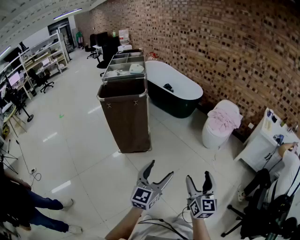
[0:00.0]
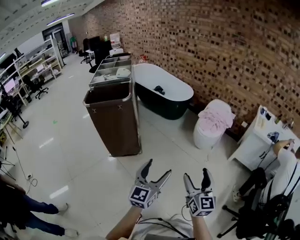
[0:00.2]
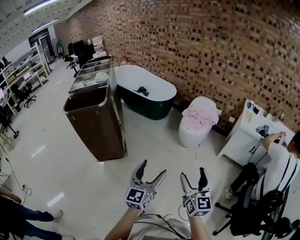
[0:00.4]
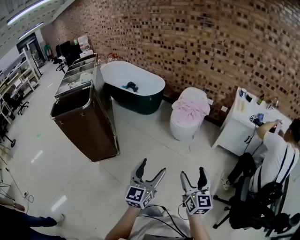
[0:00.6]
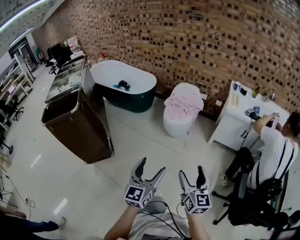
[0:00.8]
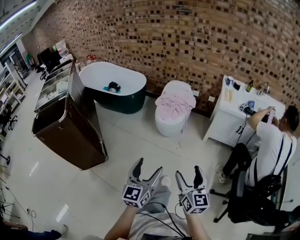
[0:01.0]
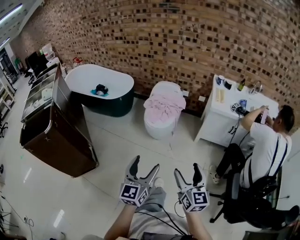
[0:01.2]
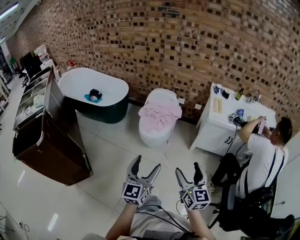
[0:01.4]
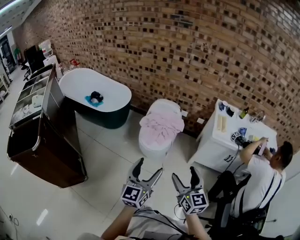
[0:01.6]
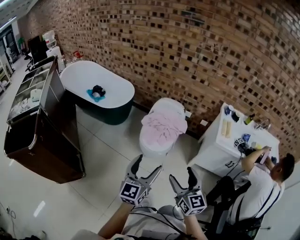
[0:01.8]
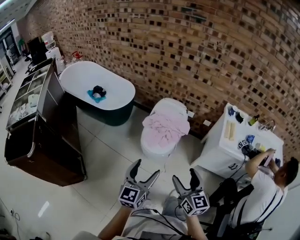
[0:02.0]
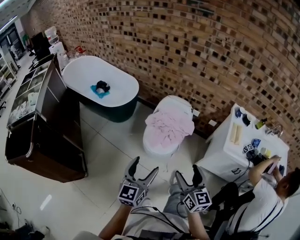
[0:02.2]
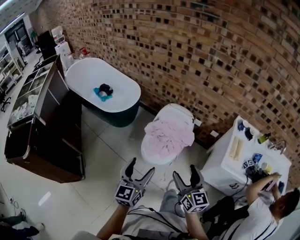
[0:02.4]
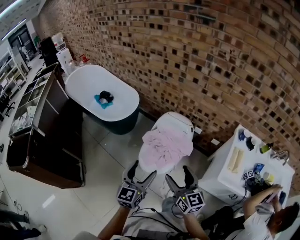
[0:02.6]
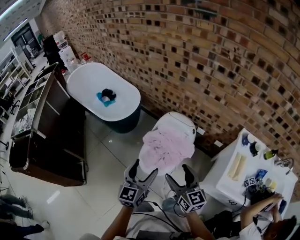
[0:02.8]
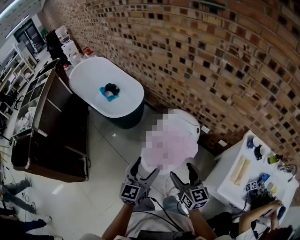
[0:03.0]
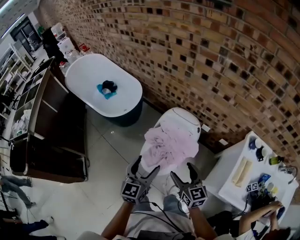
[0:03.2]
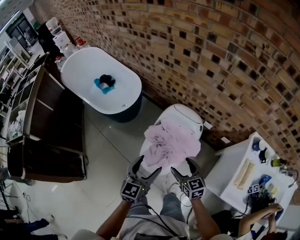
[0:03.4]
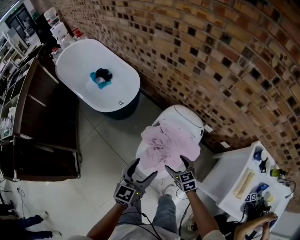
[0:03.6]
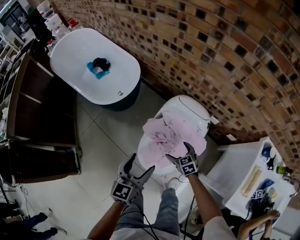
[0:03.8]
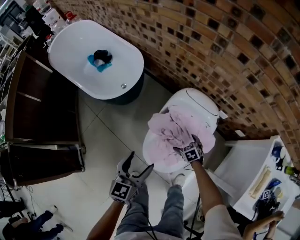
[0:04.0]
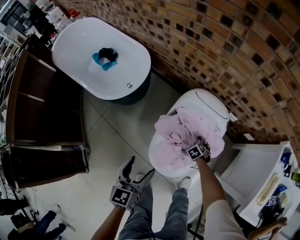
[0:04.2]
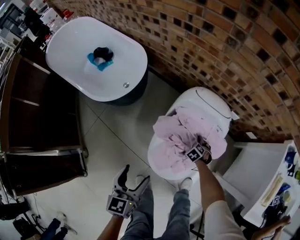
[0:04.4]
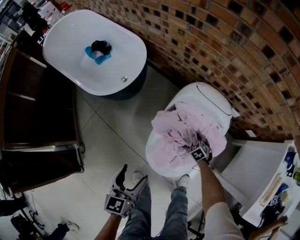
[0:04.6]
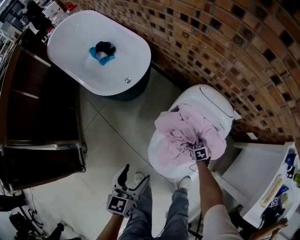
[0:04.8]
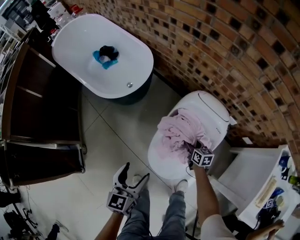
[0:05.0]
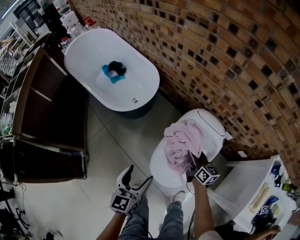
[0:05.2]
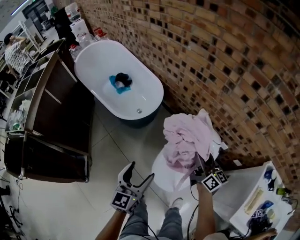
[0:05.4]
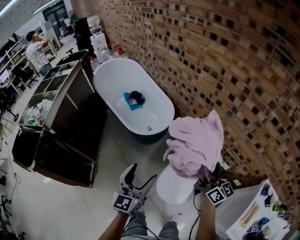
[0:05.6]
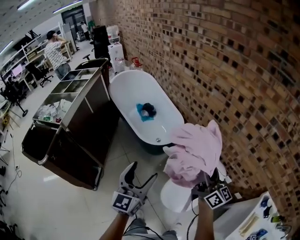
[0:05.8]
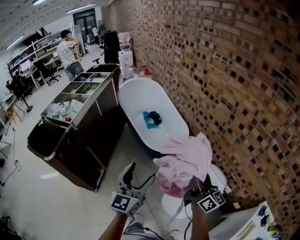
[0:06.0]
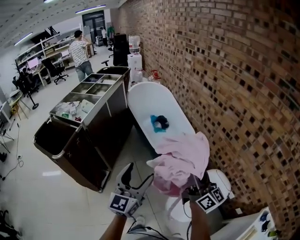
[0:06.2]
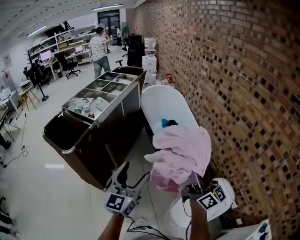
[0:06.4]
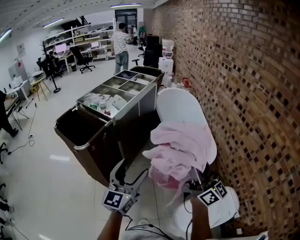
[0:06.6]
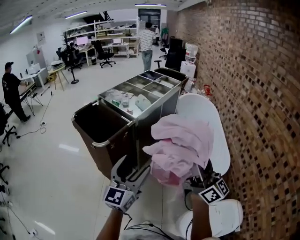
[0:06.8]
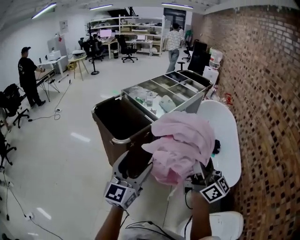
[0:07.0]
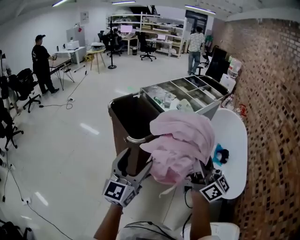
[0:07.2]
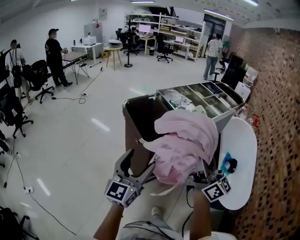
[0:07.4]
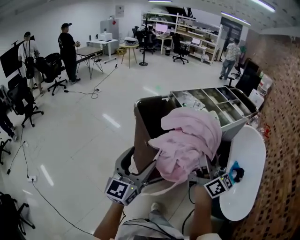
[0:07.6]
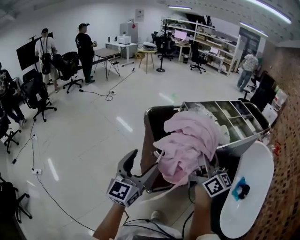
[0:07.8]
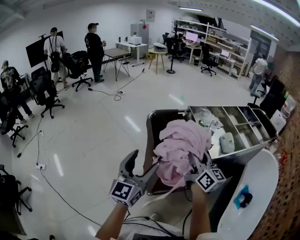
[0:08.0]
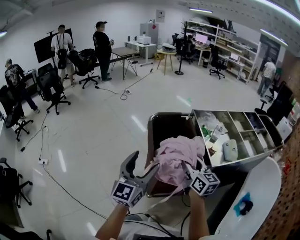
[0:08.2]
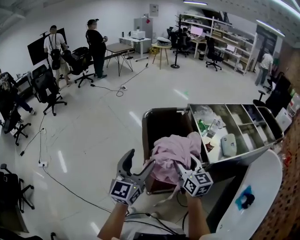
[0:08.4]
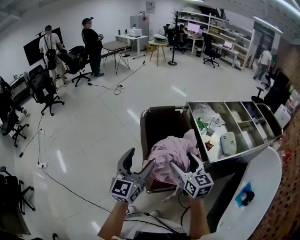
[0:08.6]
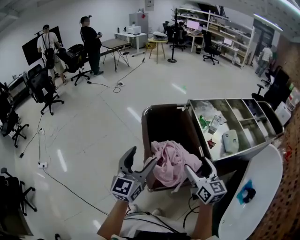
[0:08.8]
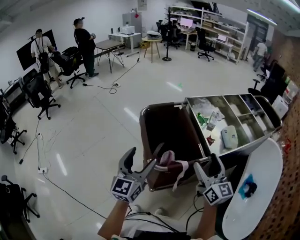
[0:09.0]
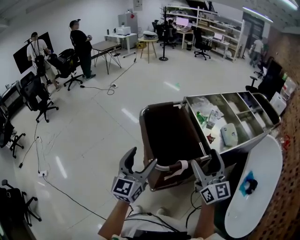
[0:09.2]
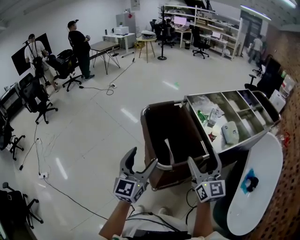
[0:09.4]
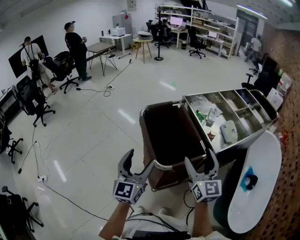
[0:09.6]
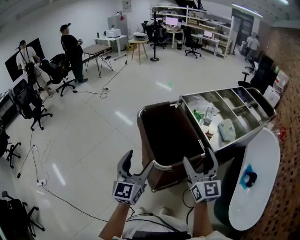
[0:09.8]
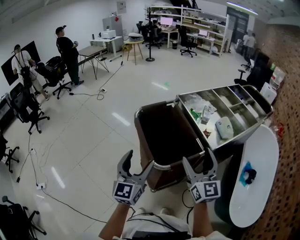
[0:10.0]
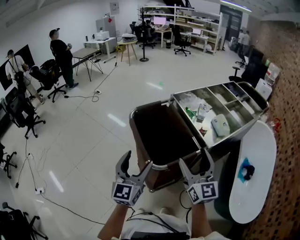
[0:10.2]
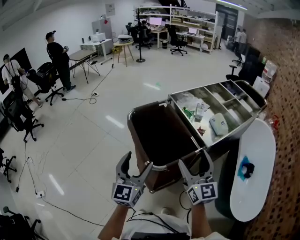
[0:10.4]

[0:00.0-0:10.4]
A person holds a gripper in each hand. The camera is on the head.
0:00.0 to 0:01.4: Both grippers are carried forward and to the right, approximately 50 cm.
0:01.4 to 0:03.0: The two grippers travel together, forward, some 50 cm. The right gripper turns by about 30 degrees.
0:03.0 to 0:04.4: The left gripper heads downward, covering roughly 25 cm; the right gripper moves downward, about 60 cm, angles its fingers downward, by approximately 70 degrees, and opens up.
0:04.4 to 0:06.0: The left gripper travels upward by some 40 cm, and tips its fingers upward by some 30 degrees. The right gripper shifts approximately 80 cm upward, angles its fingers upward, by roughly 100 degrees, and closes.
0:06.0 to 0:07.4: Both grippers are carried about 70 cm. The left gripper swivels about 50 degrees; the right gripper turns by roughly 50 degrees.
0:07.4 to 0:09.0: The left gripper moves forward, about 20 cm, and changes its angle by some 20 degrees. The right gripper travels forward and downward by some 25 cm, swivels roughly 30 degrees, and opens.
0:09.0 to 0:10.4: The right gripper shifts about 5 cm to the left.

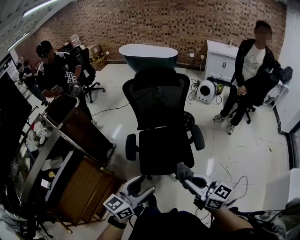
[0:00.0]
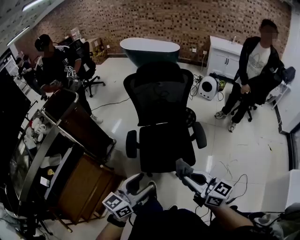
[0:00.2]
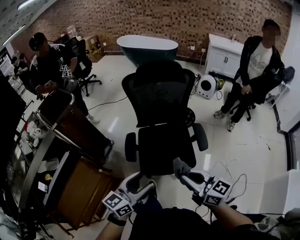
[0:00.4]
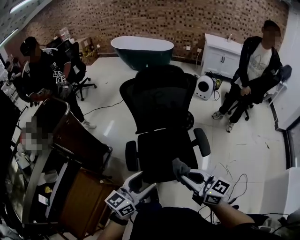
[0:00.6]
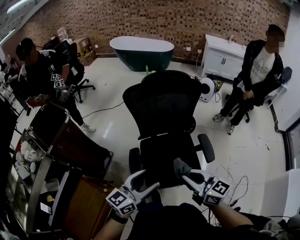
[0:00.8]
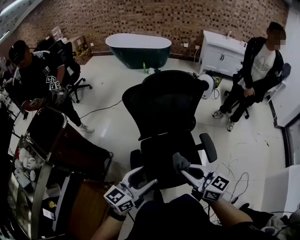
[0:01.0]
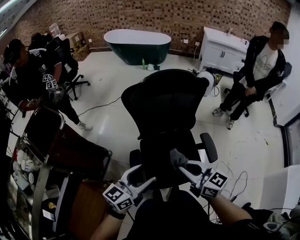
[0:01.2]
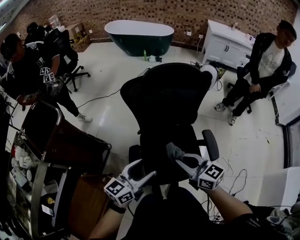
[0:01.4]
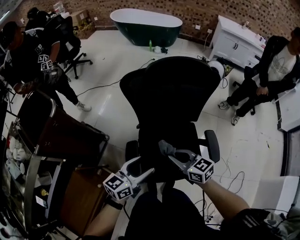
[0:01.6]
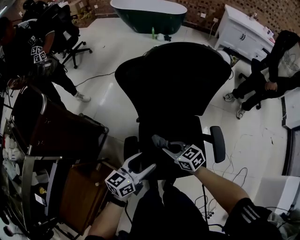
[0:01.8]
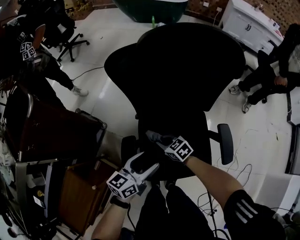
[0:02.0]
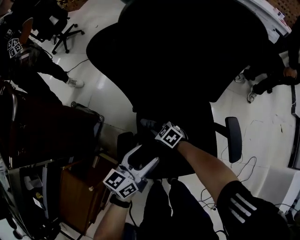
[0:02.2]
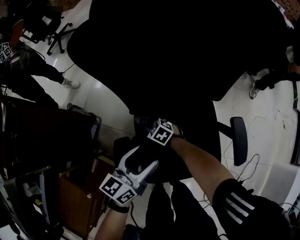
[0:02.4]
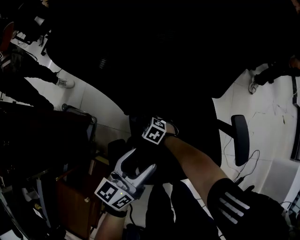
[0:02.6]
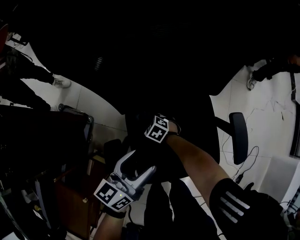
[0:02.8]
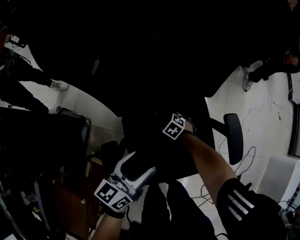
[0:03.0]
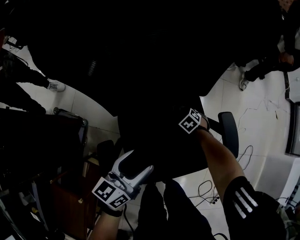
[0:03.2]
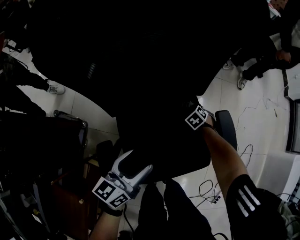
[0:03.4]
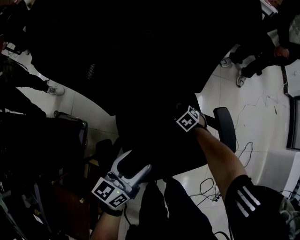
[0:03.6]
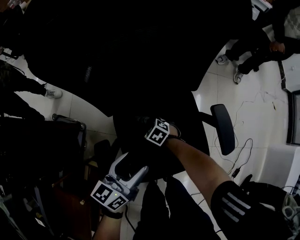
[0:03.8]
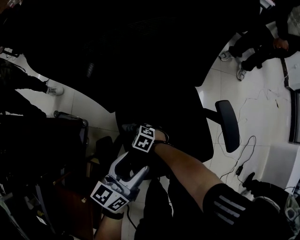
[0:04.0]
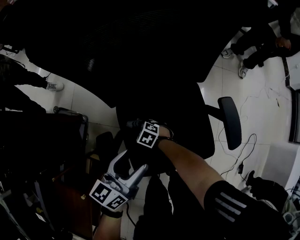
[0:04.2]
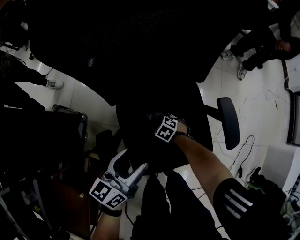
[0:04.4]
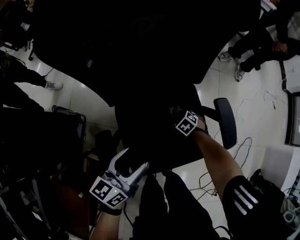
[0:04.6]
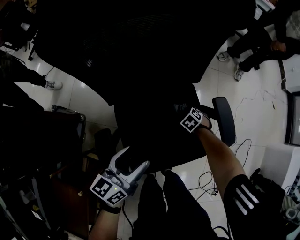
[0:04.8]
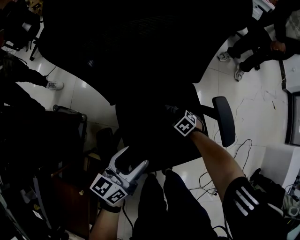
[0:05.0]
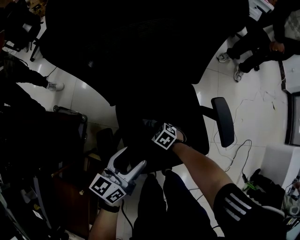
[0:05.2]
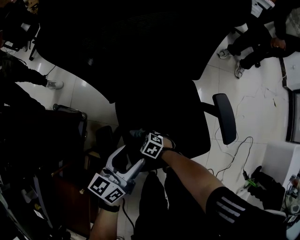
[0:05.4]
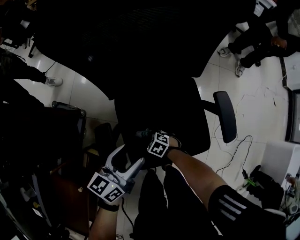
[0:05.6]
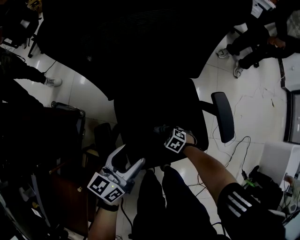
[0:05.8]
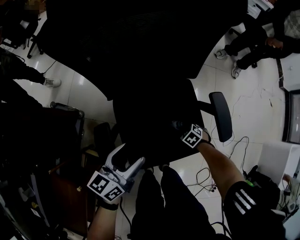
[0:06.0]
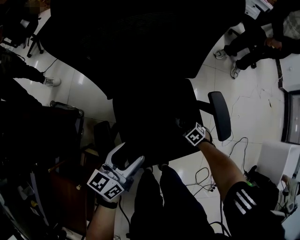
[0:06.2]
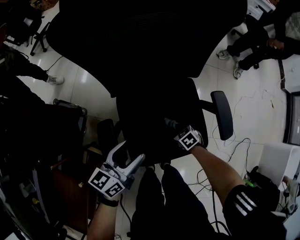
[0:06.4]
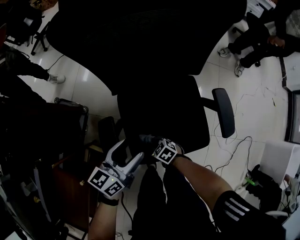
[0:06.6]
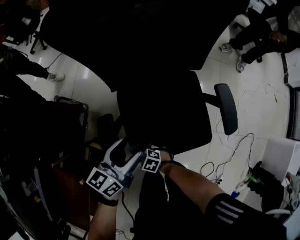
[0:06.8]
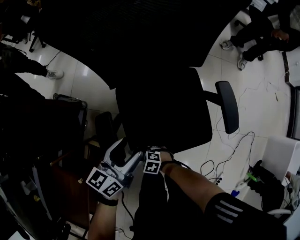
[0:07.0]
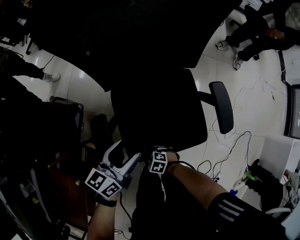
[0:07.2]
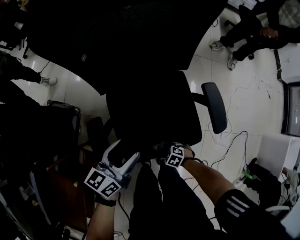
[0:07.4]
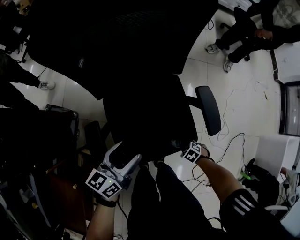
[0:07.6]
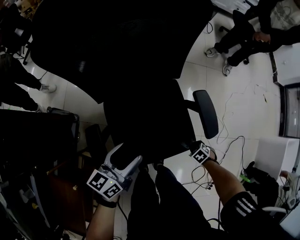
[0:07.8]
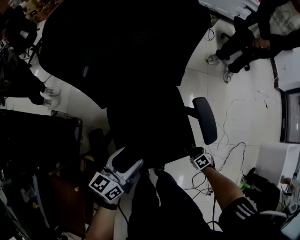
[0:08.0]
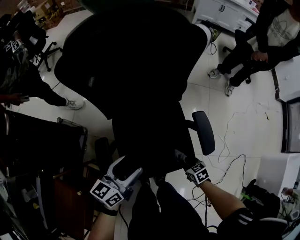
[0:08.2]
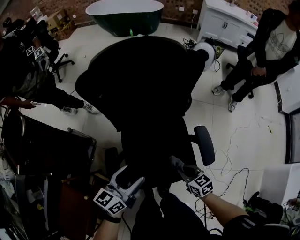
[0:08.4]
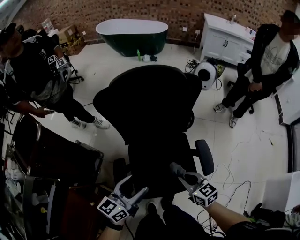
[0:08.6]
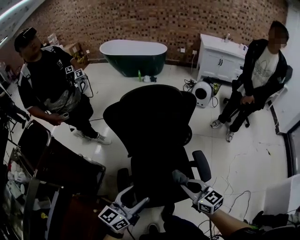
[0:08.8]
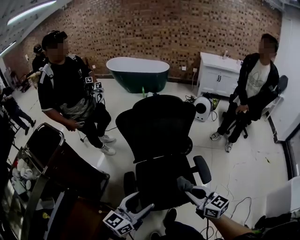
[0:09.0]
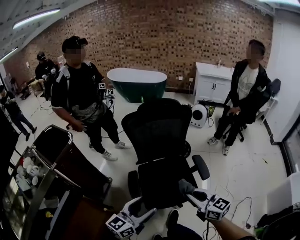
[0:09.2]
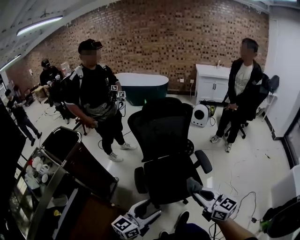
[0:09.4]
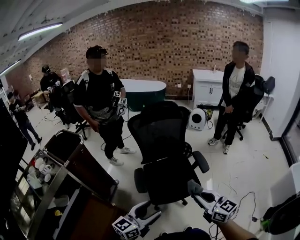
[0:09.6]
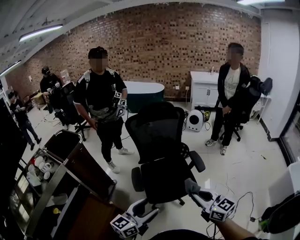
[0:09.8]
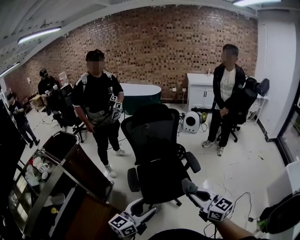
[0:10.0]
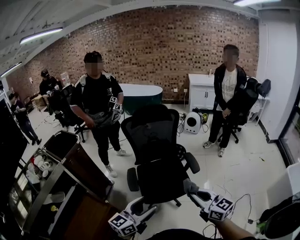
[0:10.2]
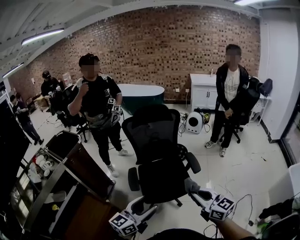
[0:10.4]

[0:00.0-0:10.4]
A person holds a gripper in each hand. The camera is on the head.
0:00.0 to 0:01.4: The left gripper shifts roughly 30 cm forward. The right gripper goes approximately 35 cm forward and to the left.
0:01.4 to 0:03.0: The left gripper shifts some 30 cm downward and forward; the right gripper goes approximately 60 cm downward, and tilts its fingers some 50 degrees downward.
0:04.4 to 0:06.0: The right gripper shifts by some 20 cm.
0:07.4 to 0:09.0: The right gripper travels upward by about 60 cm, and tips its fingers upward by approximately 60 degrees, while the left gripper is displaced upward by approximately 30 cm, and rotates some 20 degrees.
0:09.0 to 0:10.4: The right gripper shifts roughly 25 cm backward and upward, while the left gripper travels backward by roughly 25 cm.

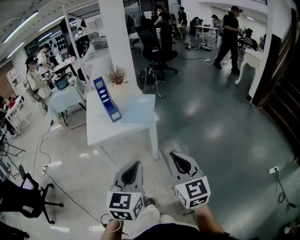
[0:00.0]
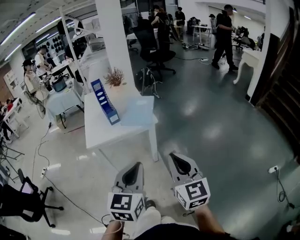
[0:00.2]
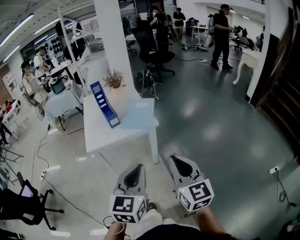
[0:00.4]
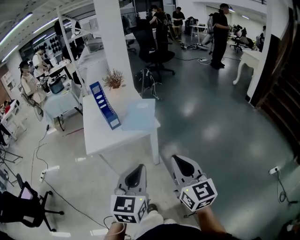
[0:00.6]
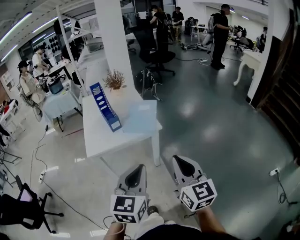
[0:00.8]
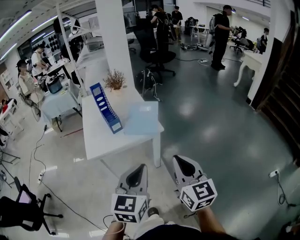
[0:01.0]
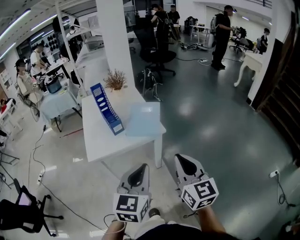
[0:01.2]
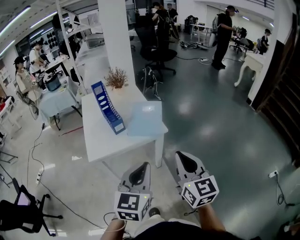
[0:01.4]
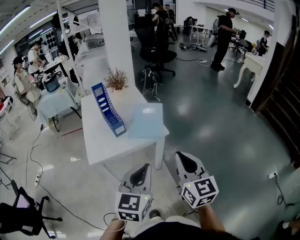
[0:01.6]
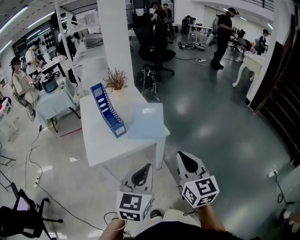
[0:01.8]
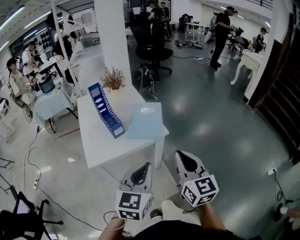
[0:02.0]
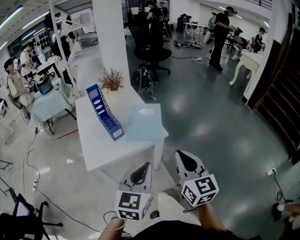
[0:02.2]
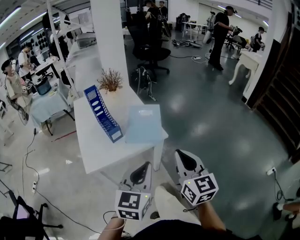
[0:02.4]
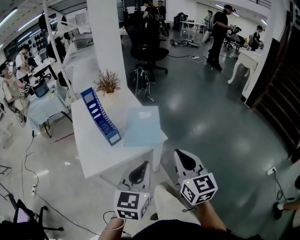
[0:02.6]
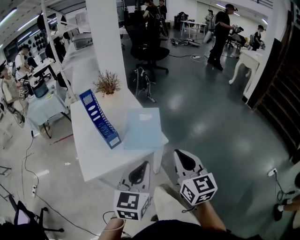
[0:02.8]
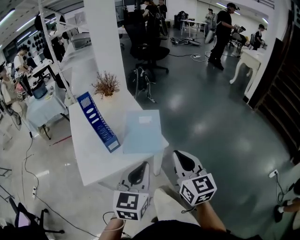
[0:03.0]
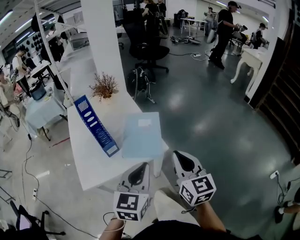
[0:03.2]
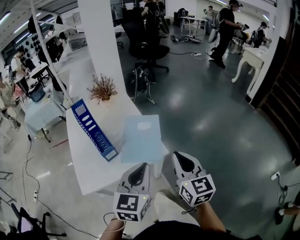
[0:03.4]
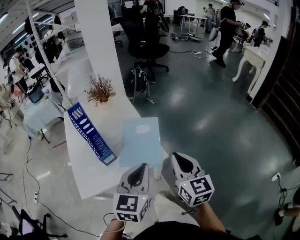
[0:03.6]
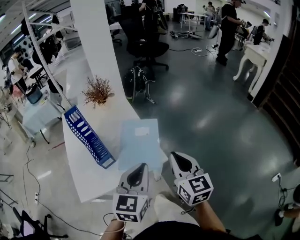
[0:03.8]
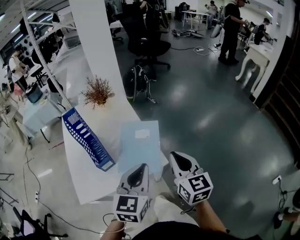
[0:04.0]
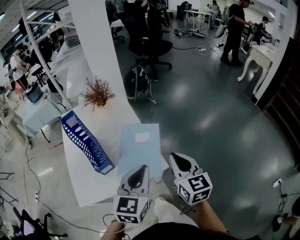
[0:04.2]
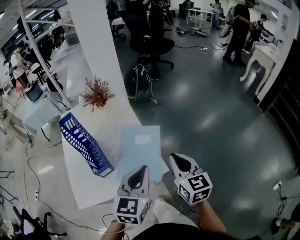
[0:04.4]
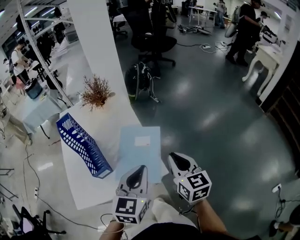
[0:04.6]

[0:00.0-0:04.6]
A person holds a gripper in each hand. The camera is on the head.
0:00.0 to 0:01.6: Both grippers move forward and to the left, about 20 cm.
0:01.6 to 0:03.0: The two grippers go some 15 cm forward.
0:03.0 to 0:04.6: The grippers both shift forward by roughly 25 cm.
